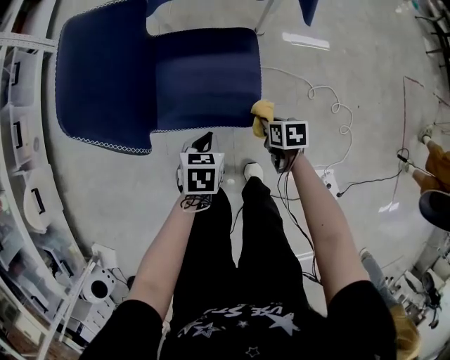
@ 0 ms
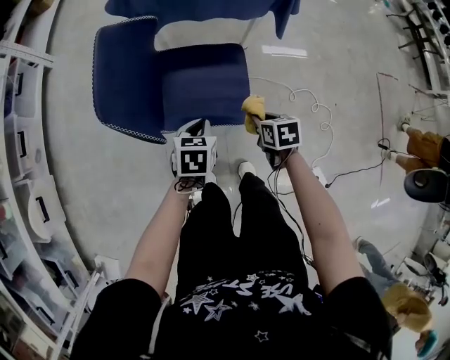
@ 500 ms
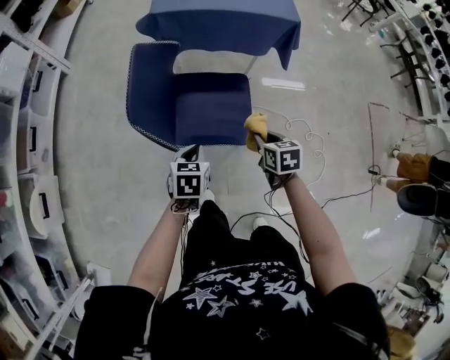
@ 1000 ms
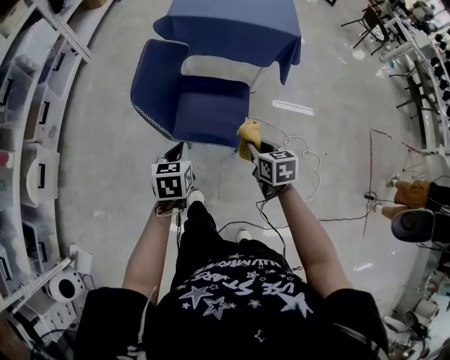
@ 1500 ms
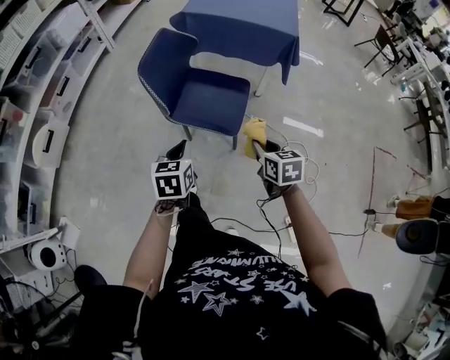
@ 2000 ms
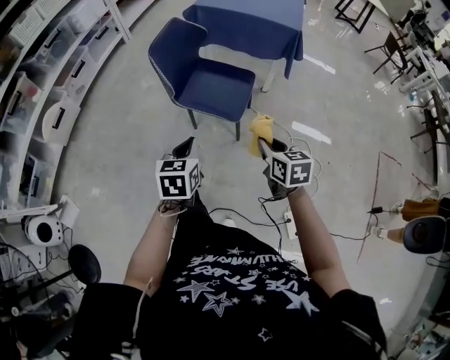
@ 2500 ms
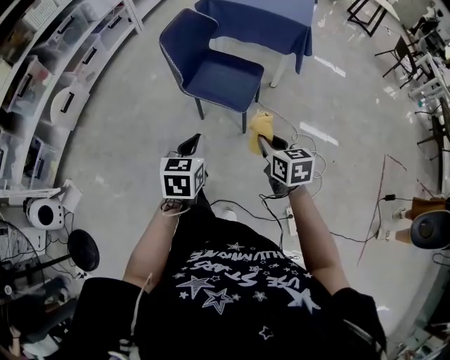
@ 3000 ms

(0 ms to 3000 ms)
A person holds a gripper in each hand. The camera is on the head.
0 ms - 1500 ms: The right gripper is displaced upward by approximately 30 cm, and rotates approximately 30 degrees; the left gripper shifts some 25 cm upward and to the left, and rotates some 20 degrees.
1500 ms - 3000 ms: Both grippers move backward, approximately 25 cm.

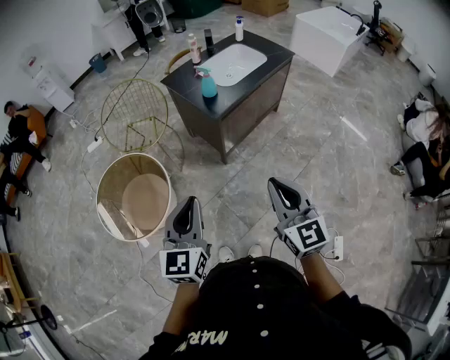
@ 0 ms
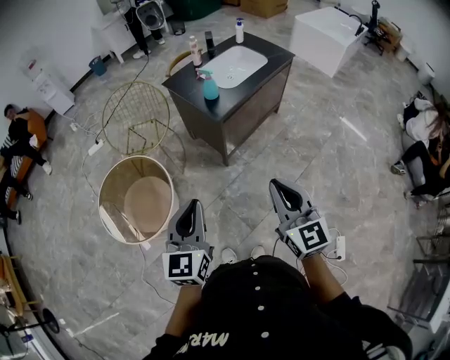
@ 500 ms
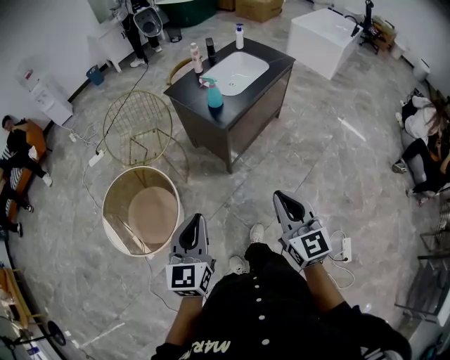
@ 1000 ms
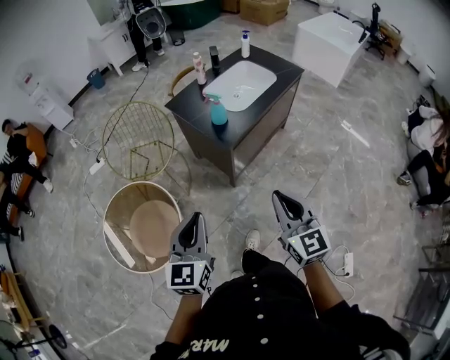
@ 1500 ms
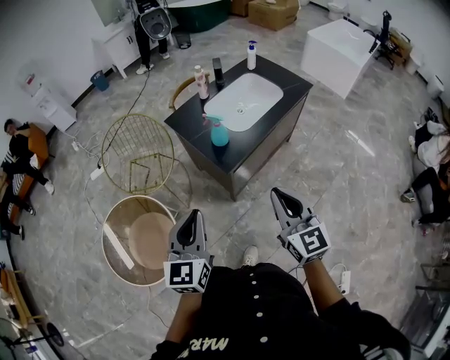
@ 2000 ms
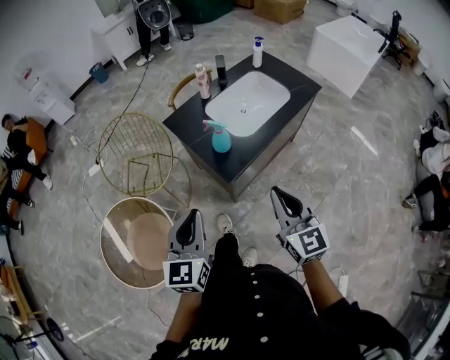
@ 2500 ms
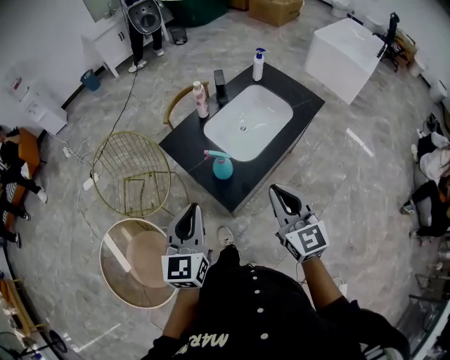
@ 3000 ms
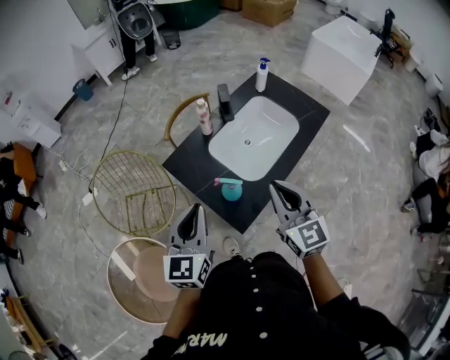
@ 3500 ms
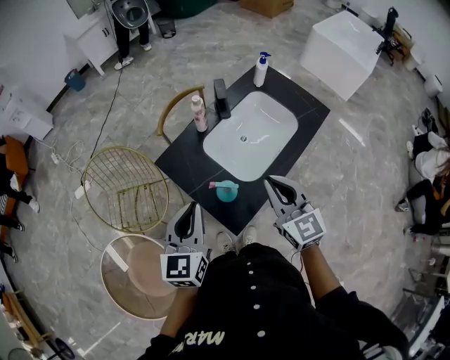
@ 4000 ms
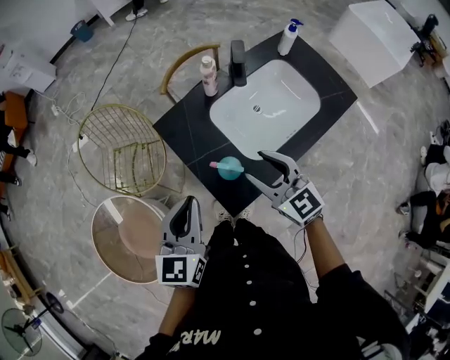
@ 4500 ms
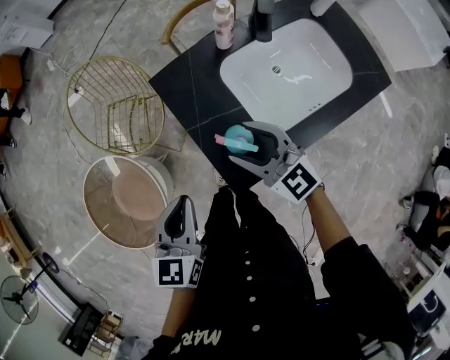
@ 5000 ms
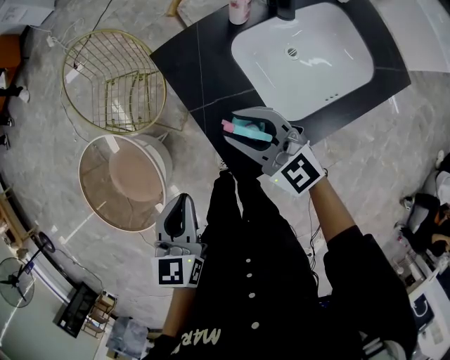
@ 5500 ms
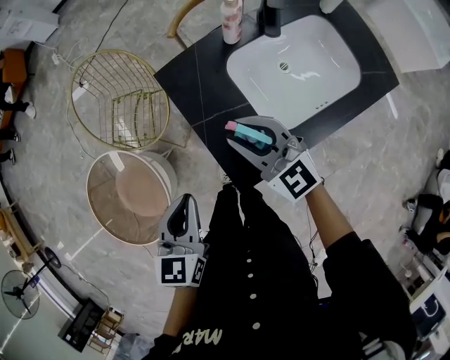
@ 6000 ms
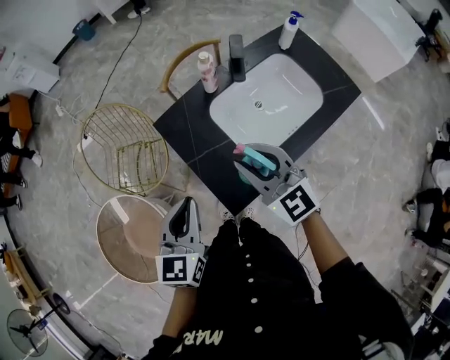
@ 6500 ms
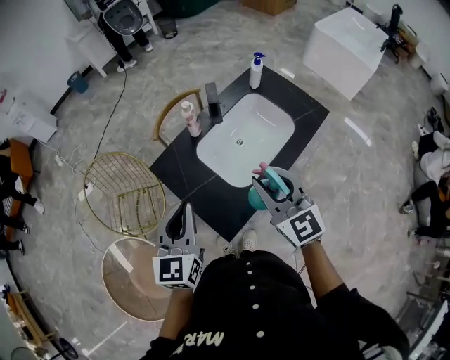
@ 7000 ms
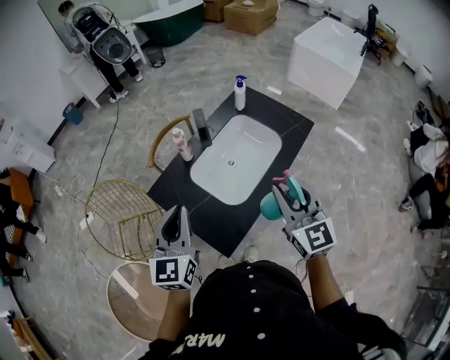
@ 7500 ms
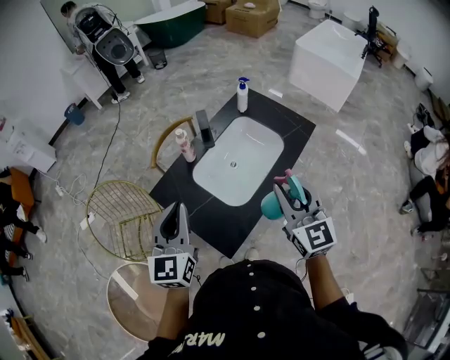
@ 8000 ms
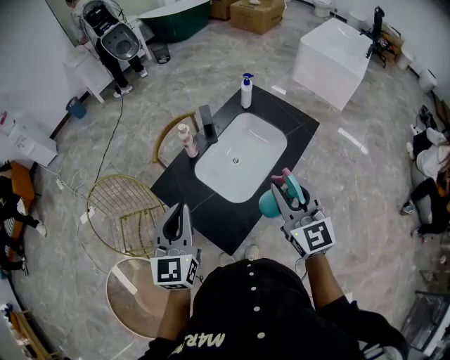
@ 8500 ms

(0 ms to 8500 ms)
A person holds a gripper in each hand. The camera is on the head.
0 ms - 2000 ms: Both grippers travel together forward, about 25 cm.
2000 ms - 4000 ms: The grippers both shift forward by approximately 35 cm.
4000 ms - 6500 ms: The right gripper goes downward and returns, roughly 15 cm each way, rotates approximately 30 degrees, and opens its fingers, while the left gripper goes downward and returns, approximately 15 cm each way.
6500 ms - 8500 ms: The left gripper shifts about 10 cm upward and forward. The right gripper goes some 20 cm to the right and upward, and rotates roughly 40 degrees.

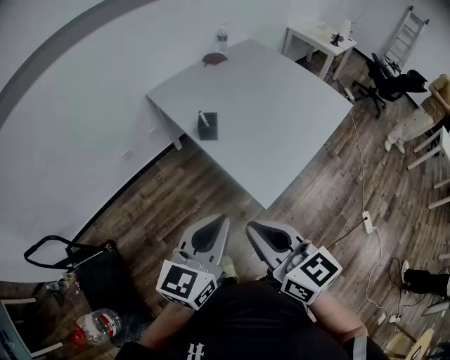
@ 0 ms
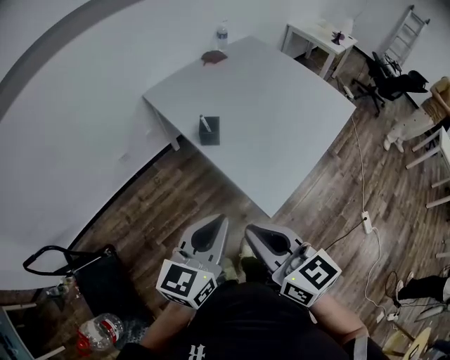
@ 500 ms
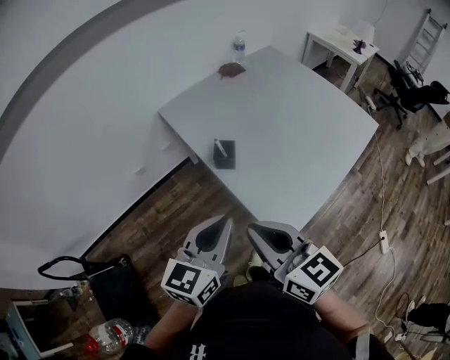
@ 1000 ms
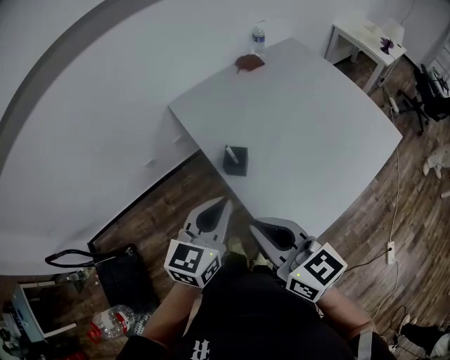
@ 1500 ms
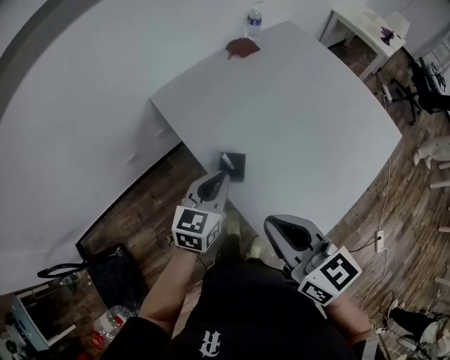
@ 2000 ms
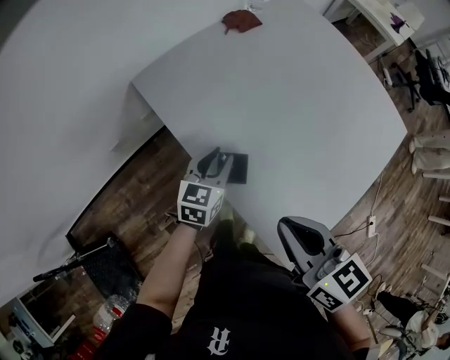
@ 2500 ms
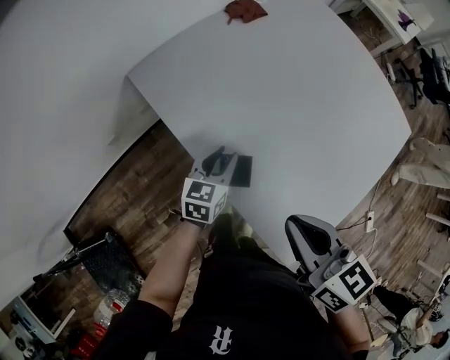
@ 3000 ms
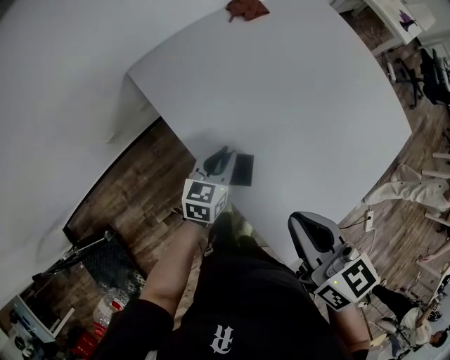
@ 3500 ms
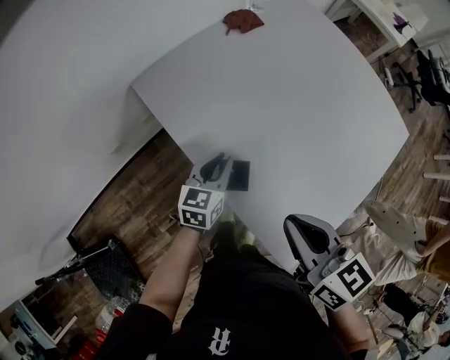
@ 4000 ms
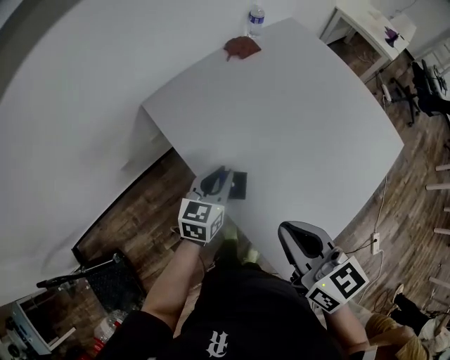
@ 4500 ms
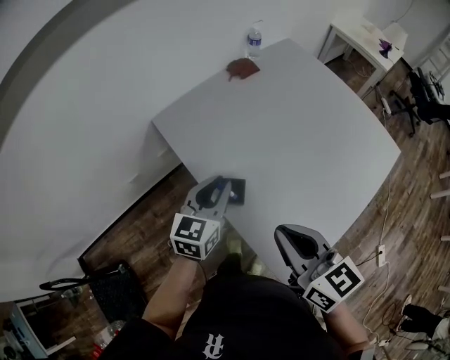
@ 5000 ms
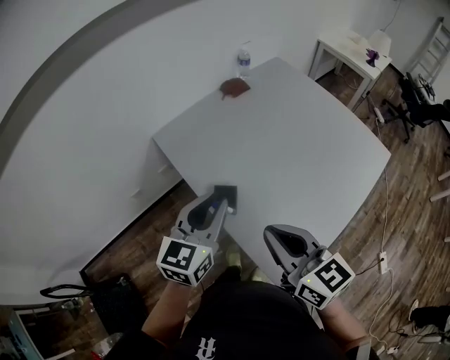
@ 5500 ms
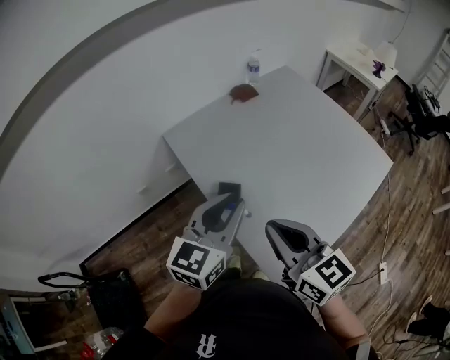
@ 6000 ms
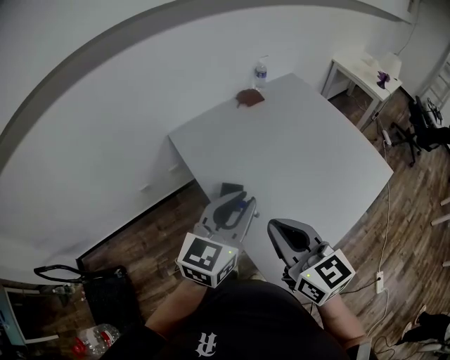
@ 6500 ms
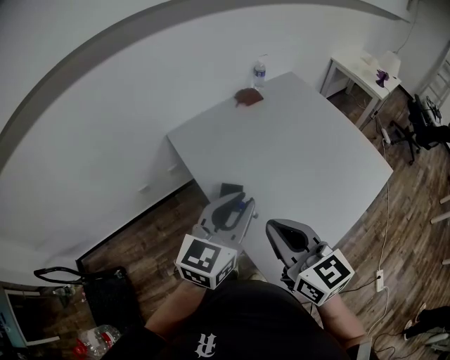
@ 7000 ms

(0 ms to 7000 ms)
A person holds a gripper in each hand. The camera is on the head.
0 ms - 2000 ms: The grippers both shift forward by about 35 cm.
2000 ms - 3500 ms: The left gripper moves downward and forward, some 15 cm. Meanwhile the right gripper shifts approximately 10 cm forward and downward.
3500 ms - 5000 ms: The right gripper changes place by about 5 cm; the left gripper travels upward by roughly 15 cm.
5000 ms - 7000 ms: The right gripper ends up about 5 cm from where it was; the left gripper heads upward, backward and to the right, covering about 20 cm.

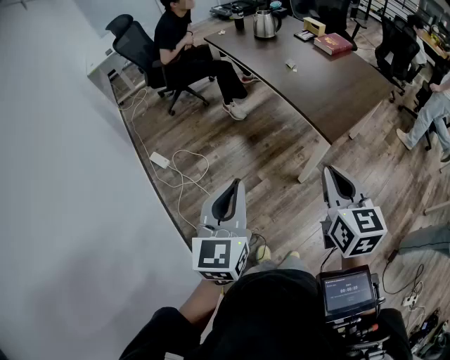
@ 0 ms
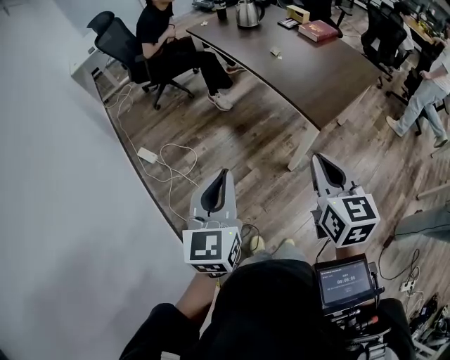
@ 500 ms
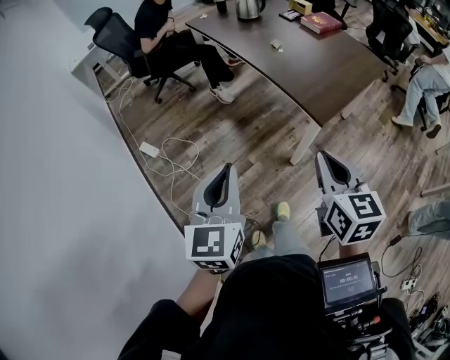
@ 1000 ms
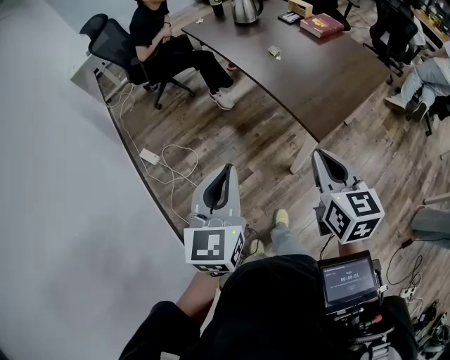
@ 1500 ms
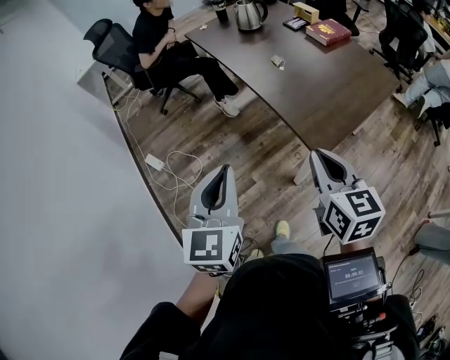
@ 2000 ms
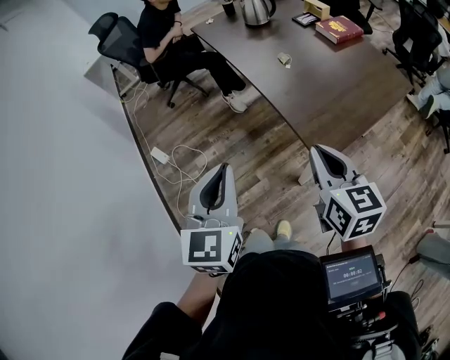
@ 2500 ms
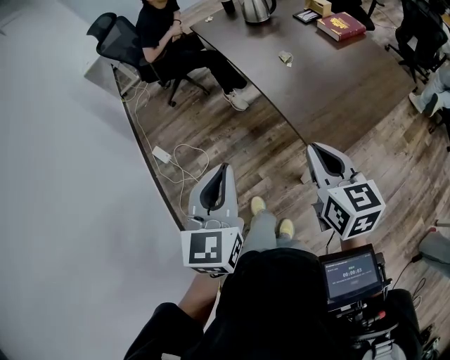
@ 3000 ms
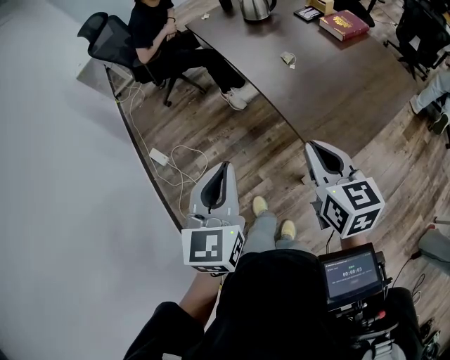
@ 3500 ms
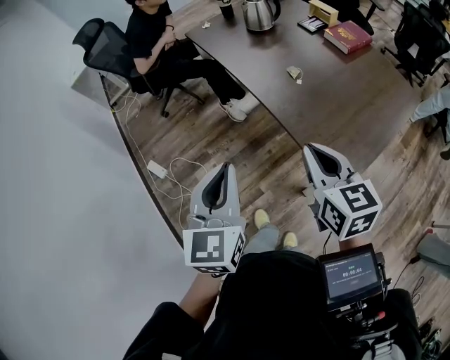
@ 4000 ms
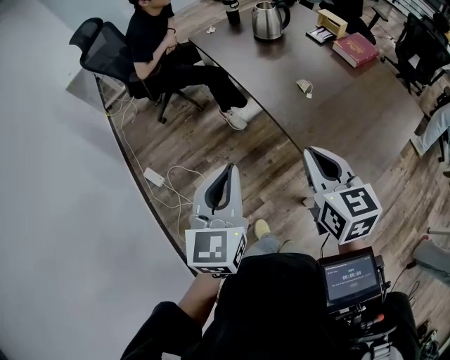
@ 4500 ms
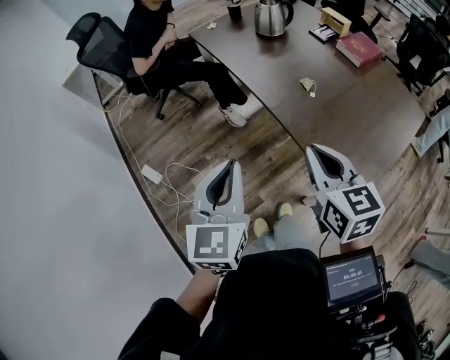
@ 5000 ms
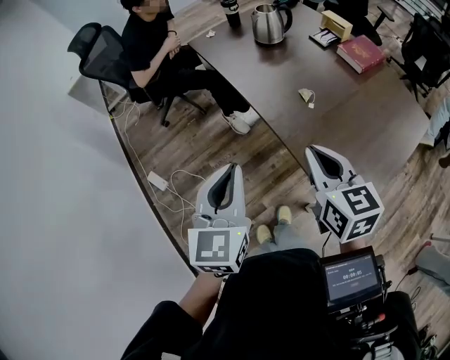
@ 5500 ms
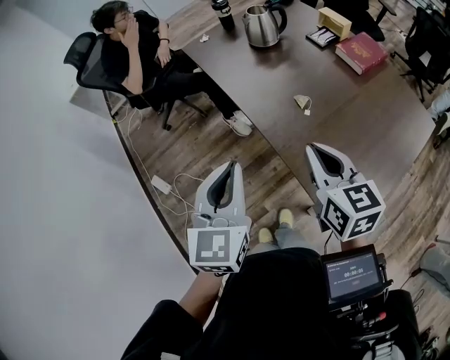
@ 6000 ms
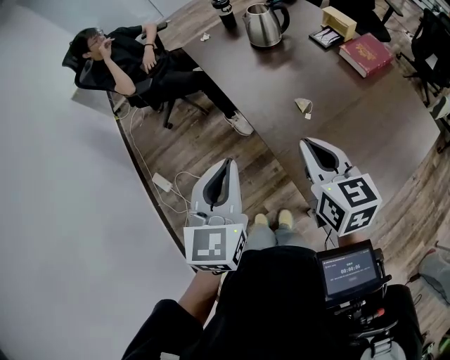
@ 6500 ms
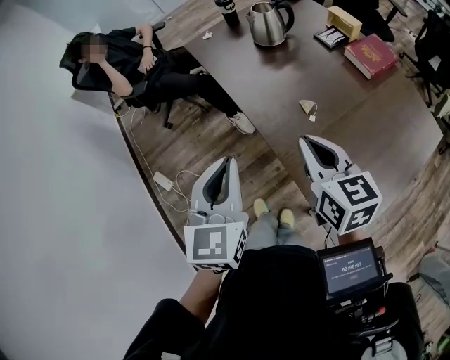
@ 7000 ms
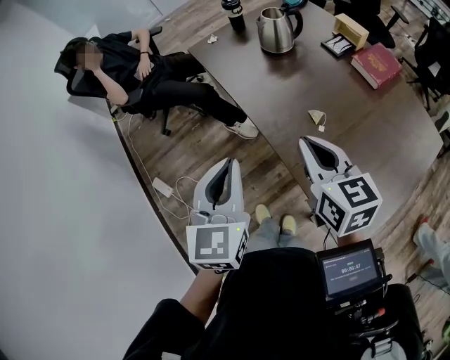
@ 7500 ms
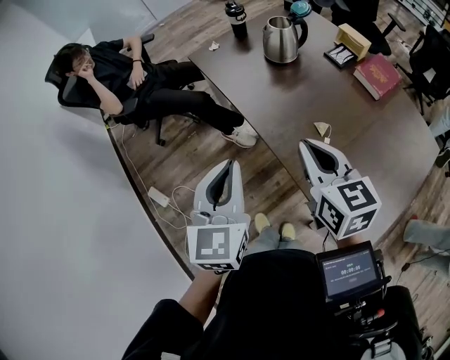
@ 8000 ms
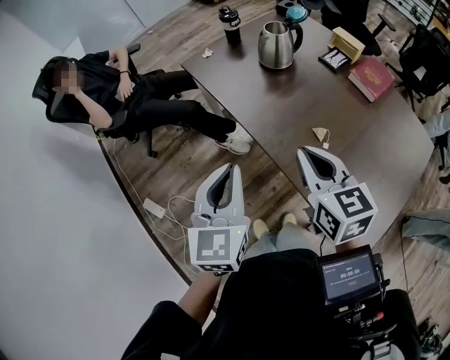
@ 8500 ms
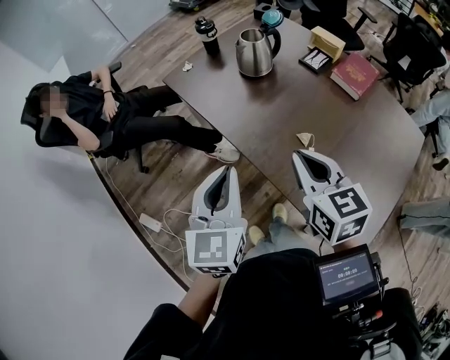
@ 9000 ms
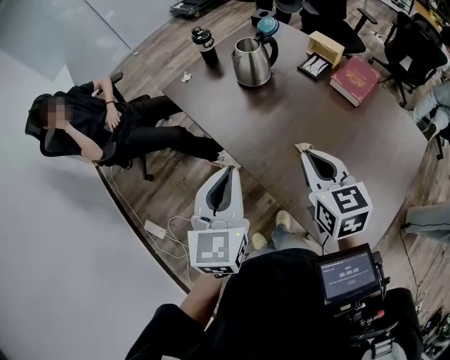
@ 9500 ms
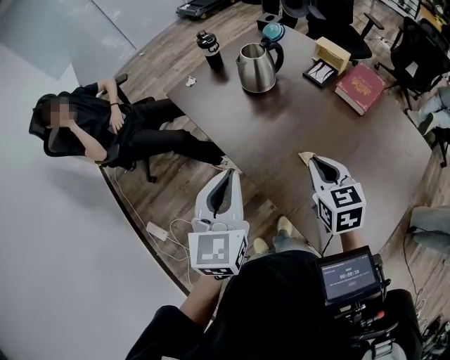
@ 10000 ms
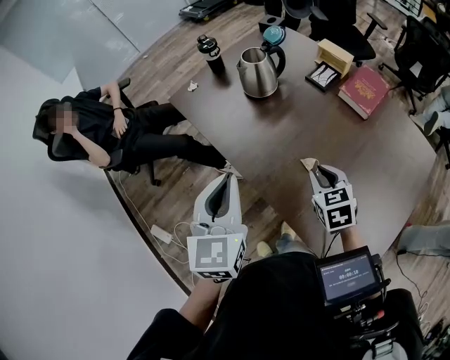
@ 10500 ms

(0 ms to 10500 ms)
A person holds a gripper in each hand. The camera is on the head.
0 ms - 2000 ms: Both grippers travel together forward and to the right, about 20 cm.
2000 ms - 4000 ms: The two grippers go some 15 cm forward.
4000 ms - 6500 ms: The two grippers go roughly 20 cm forward.
6500 ms - 8500 ms: Both grippers move forward and to the left, some 15 cm.
8500 ms - 10500 ms: The left gripper is displaced forward and to the right by some 10 cm. The right gripper travels downward, to the right and forward by roughly 20 cm, and swivels some 20 degrees.
